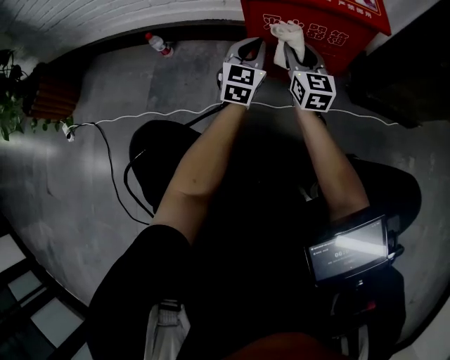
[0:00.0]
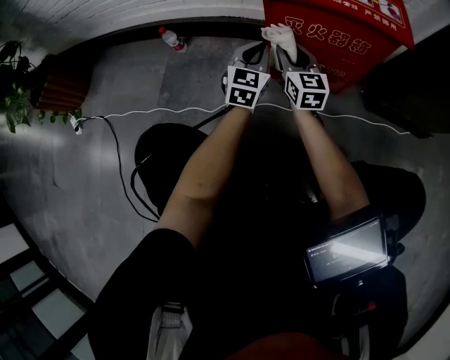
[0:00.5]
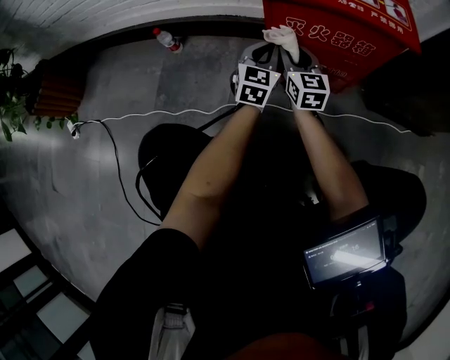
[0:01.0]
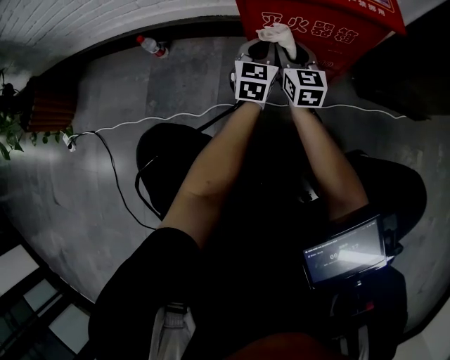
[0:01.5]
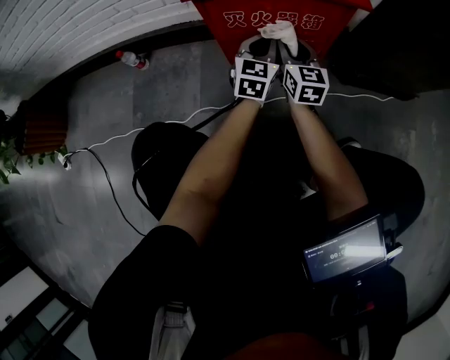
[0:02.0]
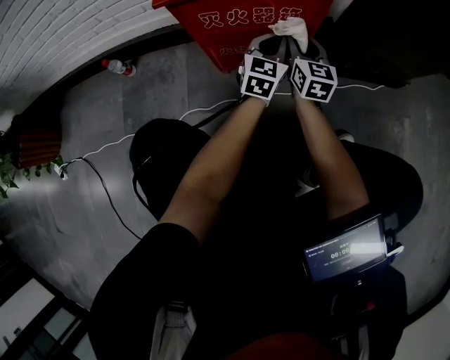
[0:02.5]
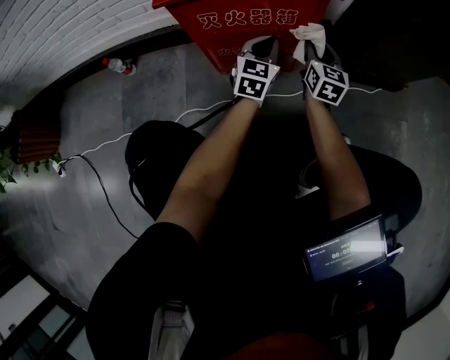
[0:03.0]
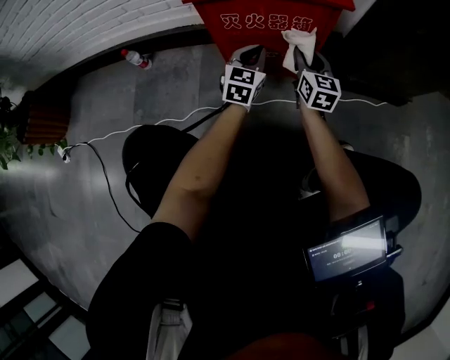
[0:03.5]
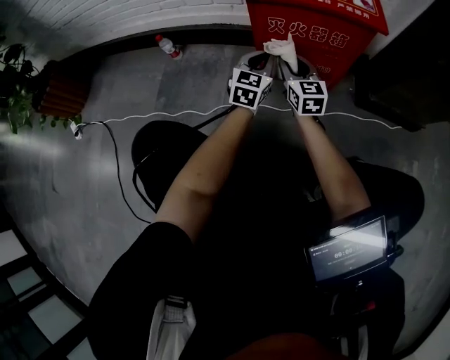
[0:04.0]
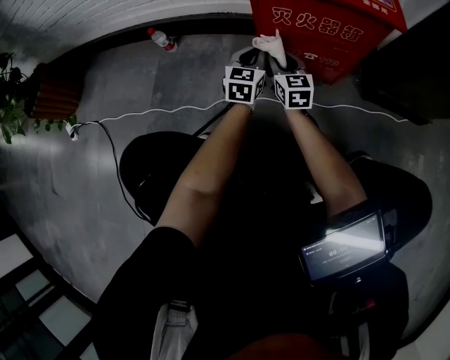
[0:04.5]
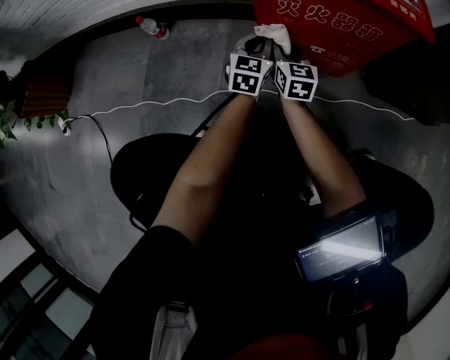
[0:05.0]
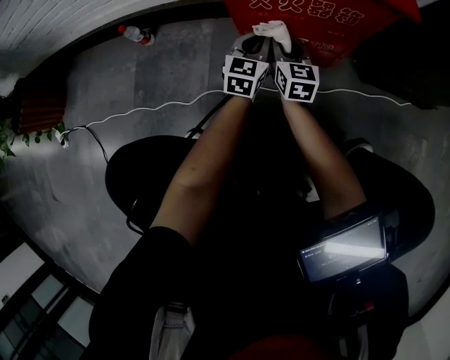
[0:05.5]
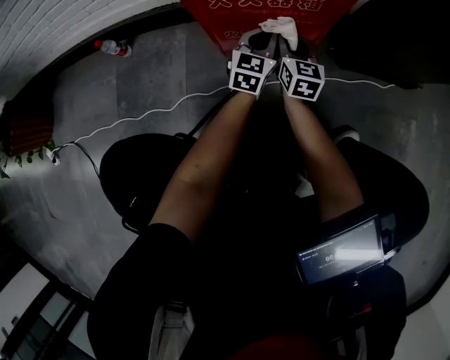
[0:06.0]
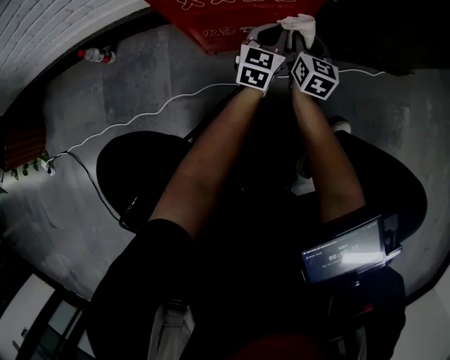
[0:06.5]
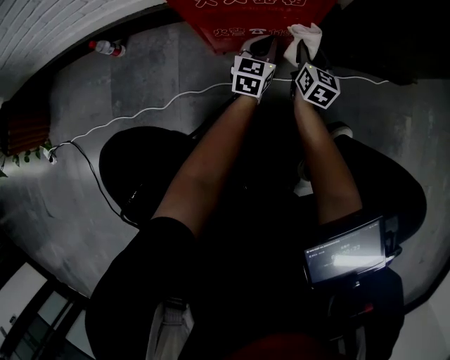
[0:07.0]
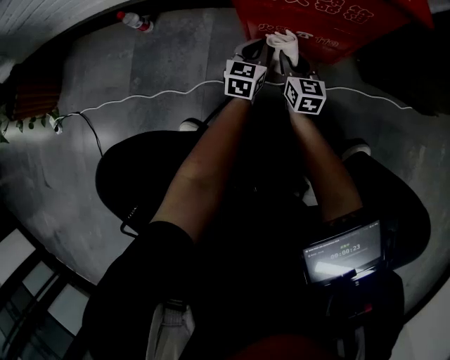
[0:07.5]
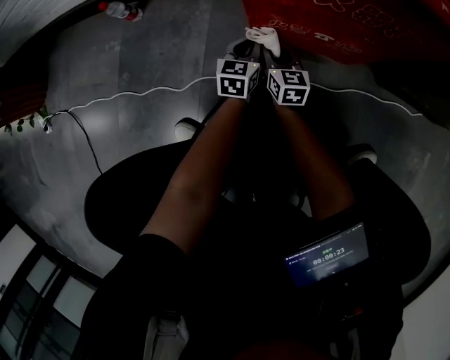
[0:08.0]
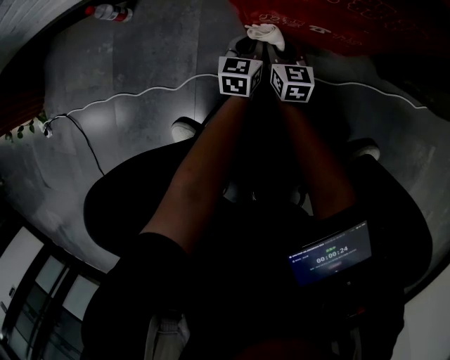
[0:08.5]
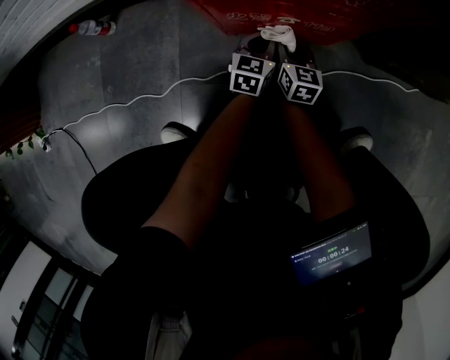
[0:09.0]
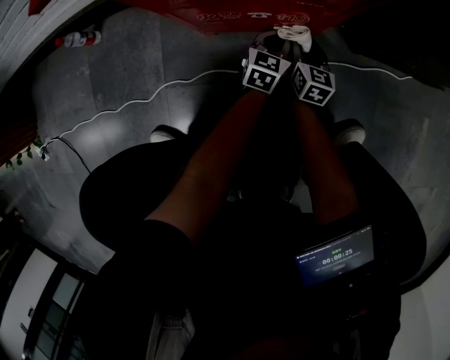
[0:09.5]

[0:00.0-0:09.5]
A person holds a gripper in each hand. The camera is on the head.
0:00.0 to 0:02.0: The right gripper travels to the right by about 5 cm, while the left gripper travels to the right by roughly 10 cm.
0:02.0 to 0:04.0: The left gripper goes some 10 cm to the left and backward. Meanwhile the right gripper travels backward by some 5 cm, and goes to the right and returns, approximately 15 cm each way.
0:04.0 to 0:05.5: The grippers both shift downward and forward by some 10 cm.
0:05.5 to 0:07.5: Both grippers move downward, some 5 cm. The left gripper travels to the right and back again, some 20 cm each way; the right gripper moves about 20 cm to the right and comes back.
0:07.5 to 0:09.5: Both grippers move to the right and downward, about 20 cm.

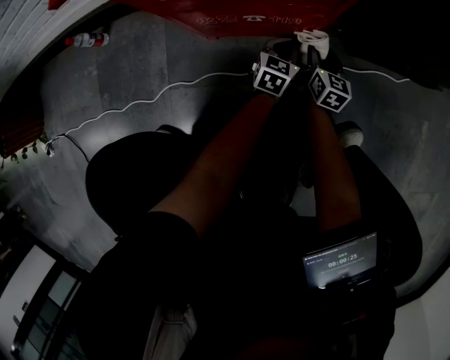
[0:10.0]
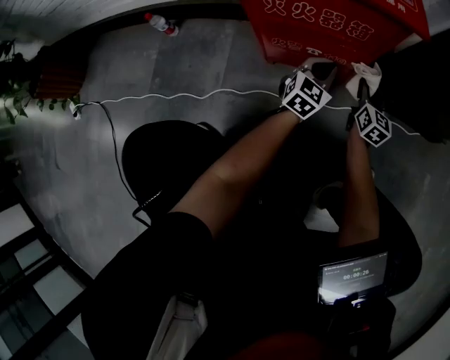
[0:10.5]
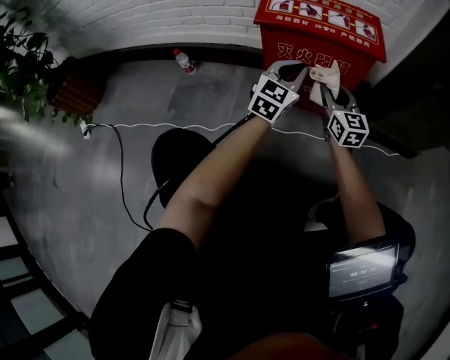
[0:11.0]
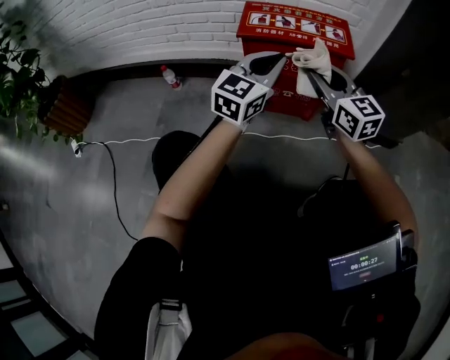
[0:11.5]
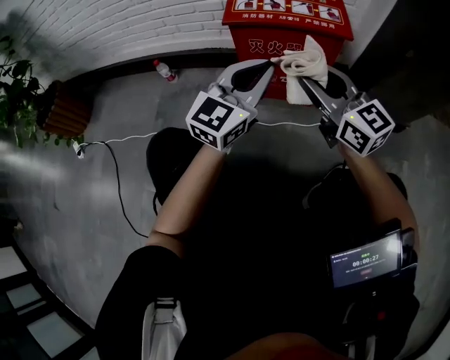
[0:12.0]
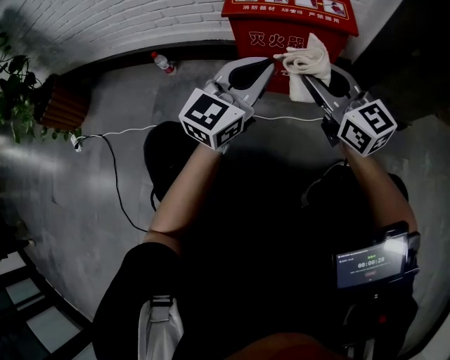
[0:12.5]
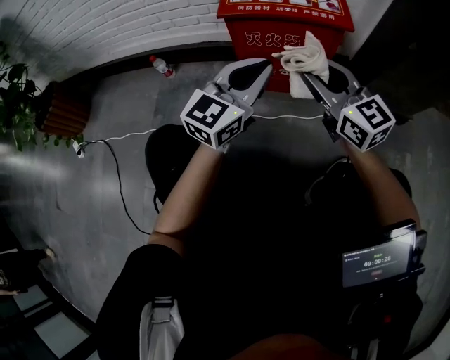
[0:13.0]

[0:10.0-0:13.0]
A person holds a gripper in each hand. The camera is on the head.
0:10.0 to 0:11.5: The grippers both shift upward by about 50 cm. The right gripper turns by roughly 50 degrees. Meanwhile the left gripper tilts its fingers roughly 30 degrees upward.
0:11.5 to 0:13.0: The two grippers go approximately 5 cm backward.

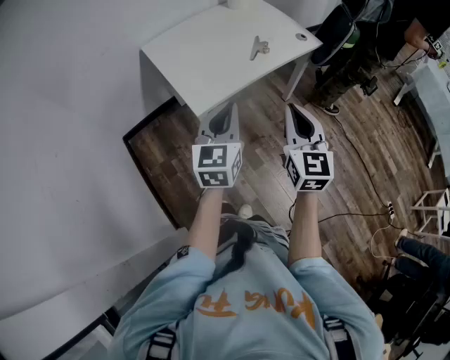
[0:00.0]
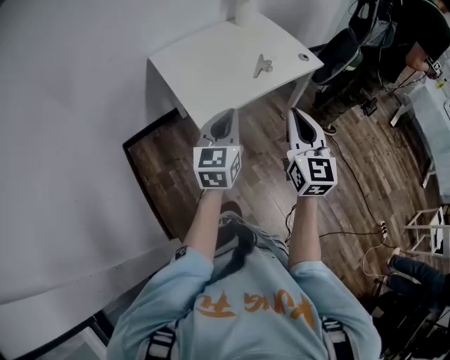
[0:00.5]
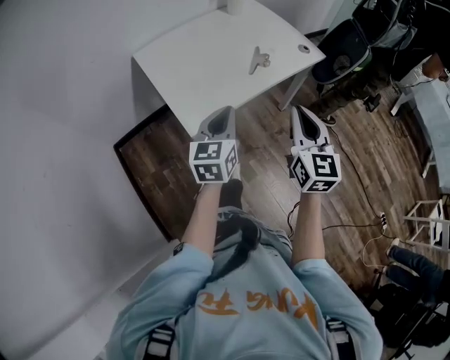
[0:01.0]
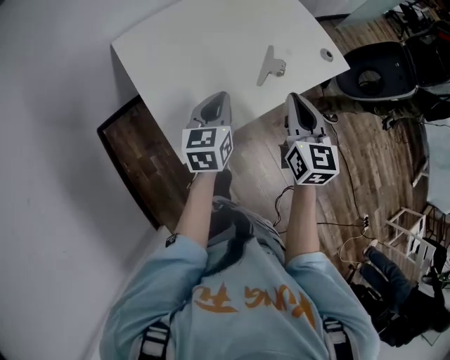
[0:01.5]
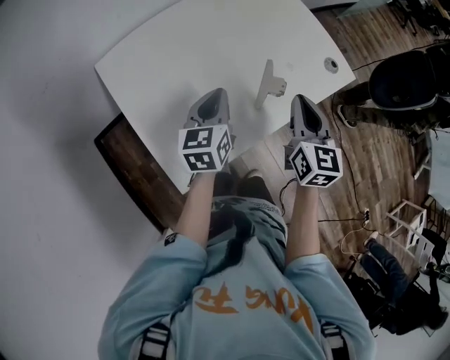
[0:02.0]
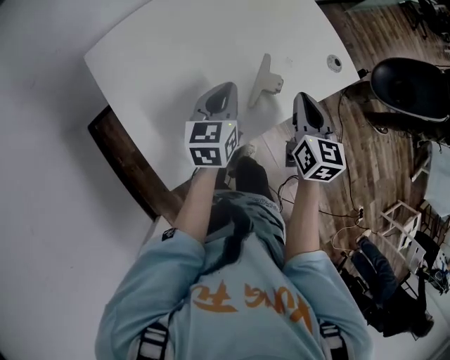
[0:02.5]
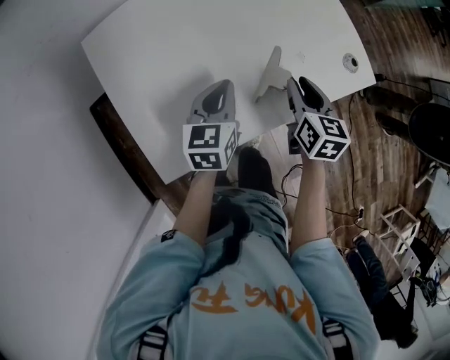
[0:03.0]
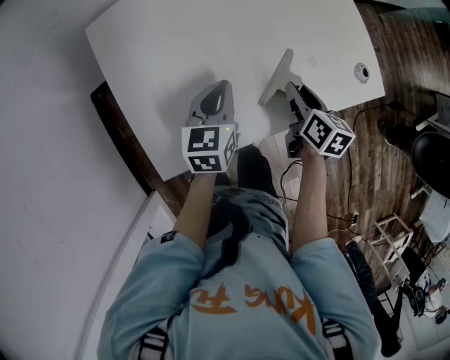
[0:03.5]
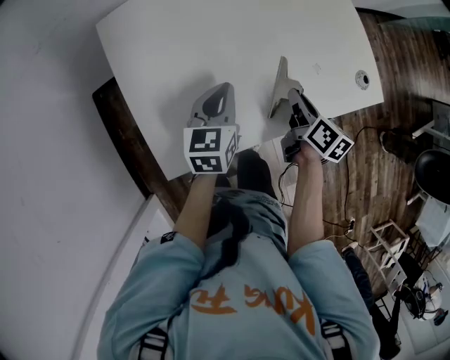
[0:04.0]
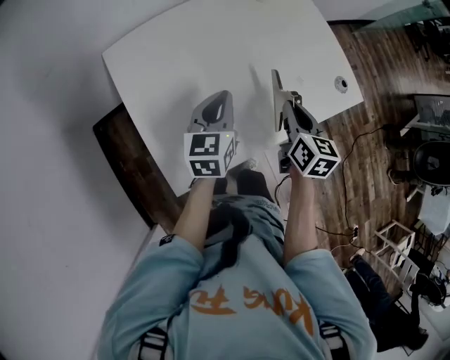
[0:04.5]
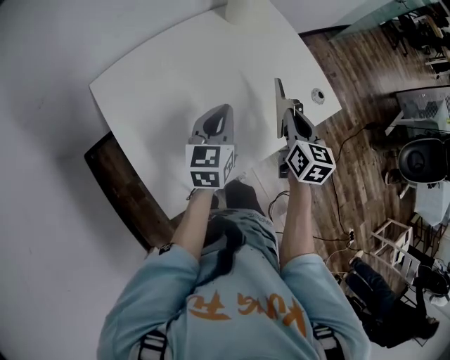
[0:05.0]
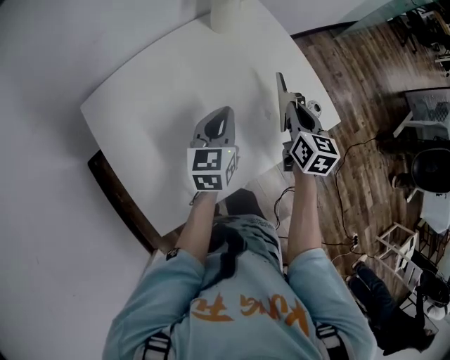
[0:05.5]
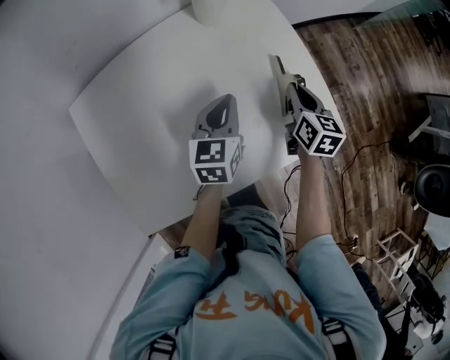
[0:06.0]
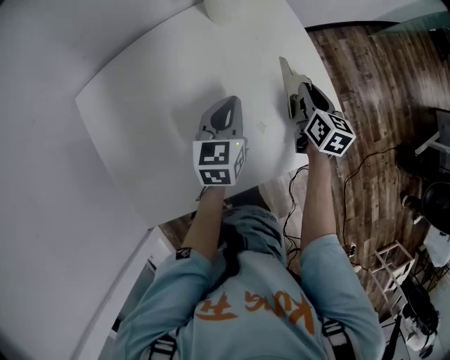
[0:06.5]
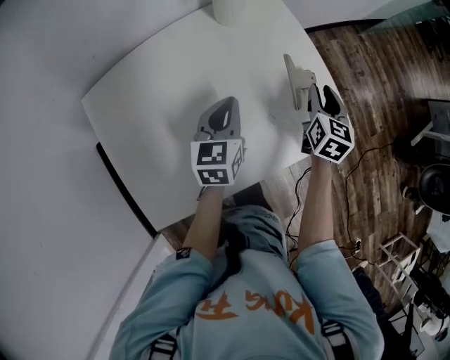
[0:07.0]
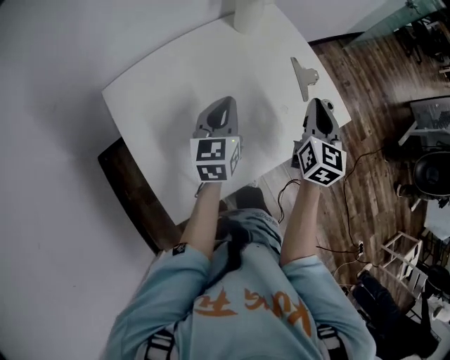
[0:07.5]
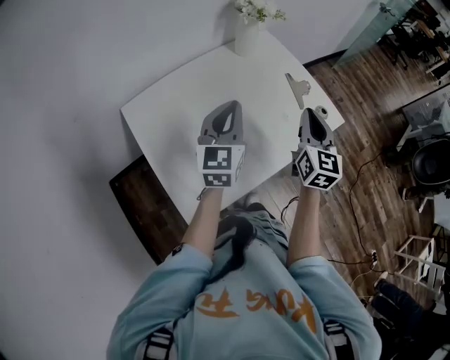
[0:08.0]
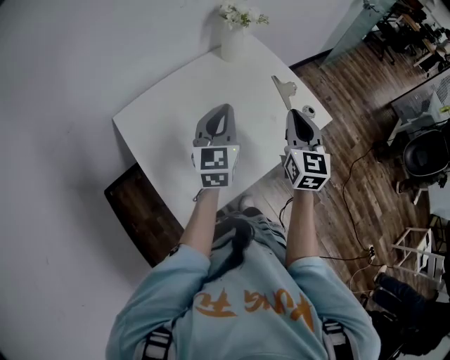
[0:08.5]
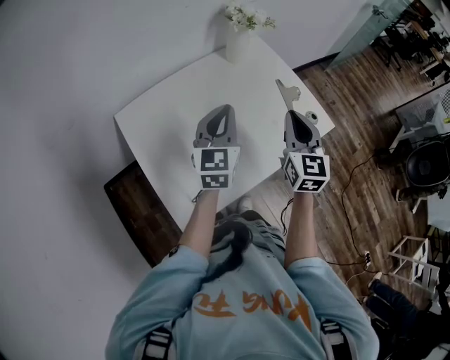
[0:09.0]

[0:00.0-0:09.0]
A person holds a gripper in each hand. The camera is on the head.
0:00.0 to 0:02.0: The pair of grippers is taken forward, some 40 cm. The left gripper rotates approximately 20 degrees.
0:02.0 to 0:04.5: The right gripper moves downward, roughly 5 cm, and opens, then closes again.
0:04.5 to 0:07.0: Both grippers move forward and to the right, approximately 25 cm. The right gripper opens its fingers.
0:07.0 to 0:09.0: The left gripper moves upward and backward, roughly 20 cm, and swivels some 20 degrees. Meanwhile the right gripper goes approximately 30 cm backward, upward and to the left, rotates roughly 20 degrees, and closes up.

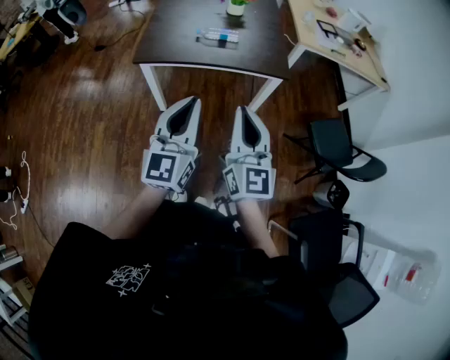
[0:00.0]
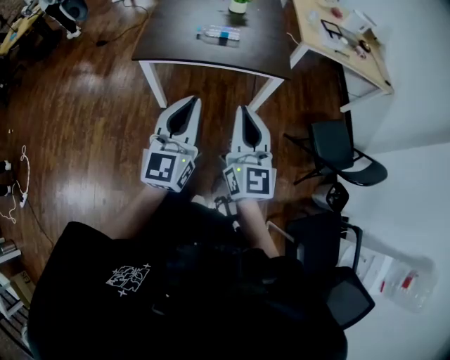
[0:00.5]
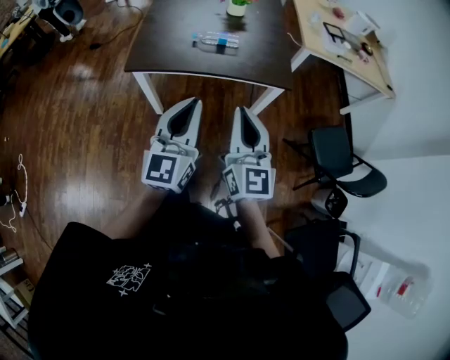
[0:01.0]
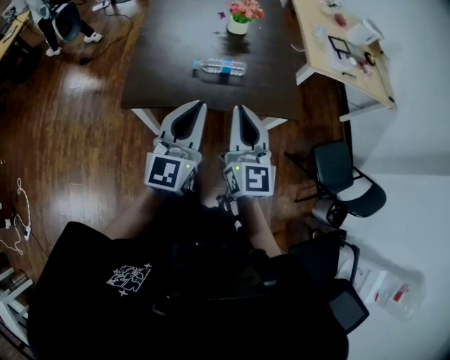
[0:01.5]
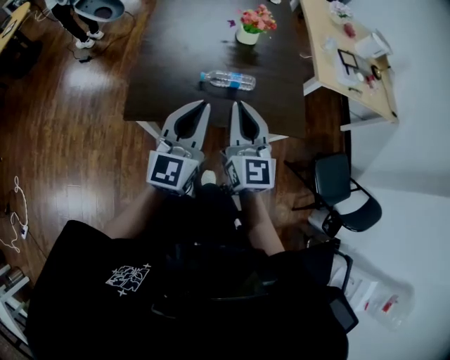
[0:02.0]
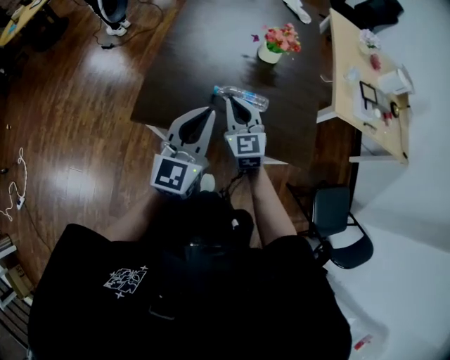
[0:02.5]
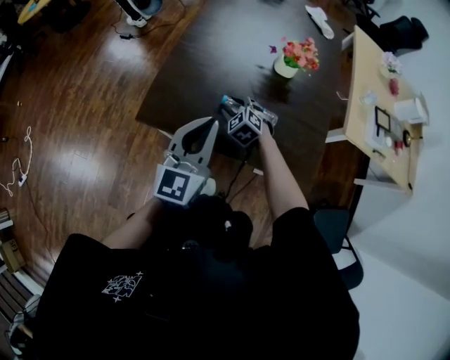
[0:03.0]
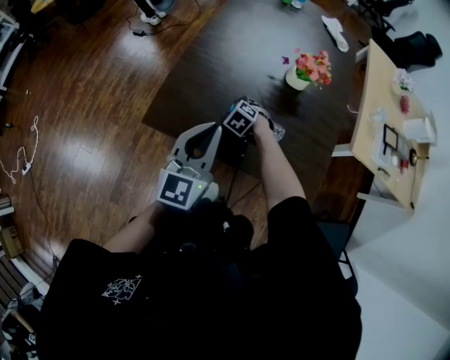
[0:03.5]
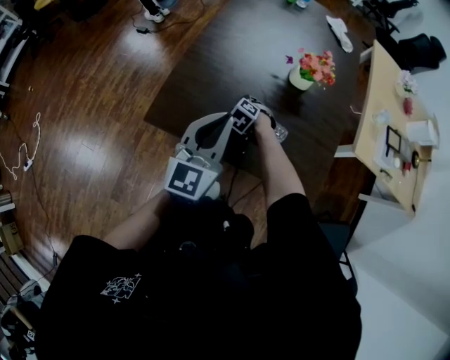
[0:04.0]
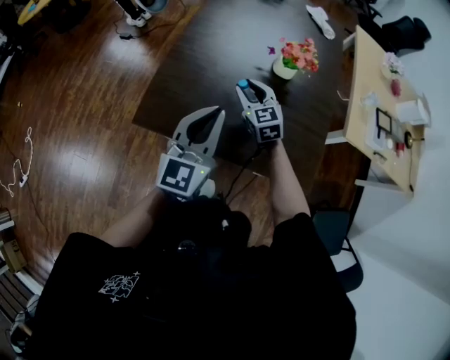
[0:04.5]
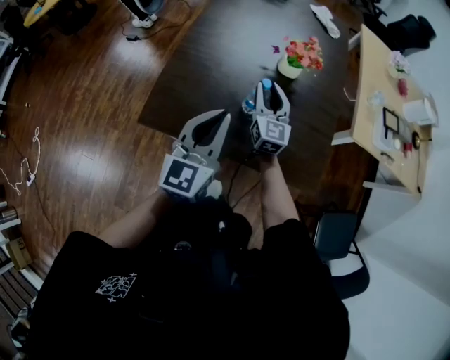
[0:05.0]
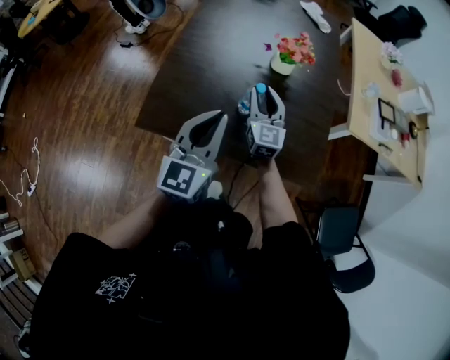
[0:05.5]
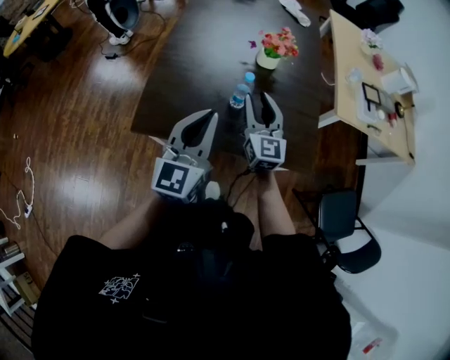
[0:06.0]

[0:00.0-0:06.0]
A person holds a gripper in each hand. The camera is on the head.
0:00.0 to 0:02.0: Both grippers travel together forward, roughly 35 cm.
0:02.0 to 0:04.0: The left gripper ends up about 10 cm from where it was. The right gripper is displaced downward by about 35 cm, angles its fingers downward, by about 70 degrees, and opens up.
0:04.0 to 0:06.0: The left gripper is displaced backward by roughly 5 cm. The right gripper heads upward and to the right, covering about 30 cm, and tilts its fingers some 70 degrees upward.
